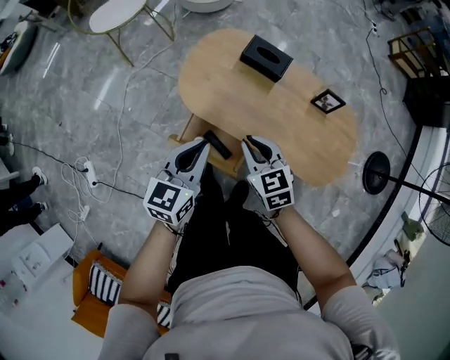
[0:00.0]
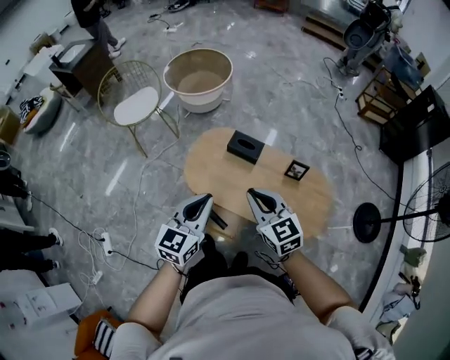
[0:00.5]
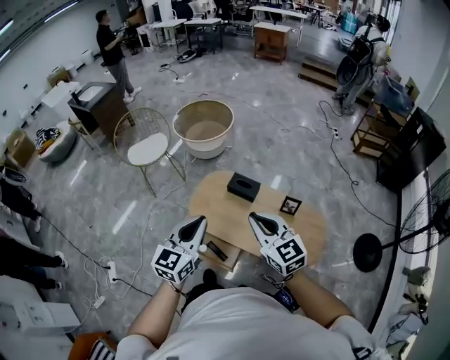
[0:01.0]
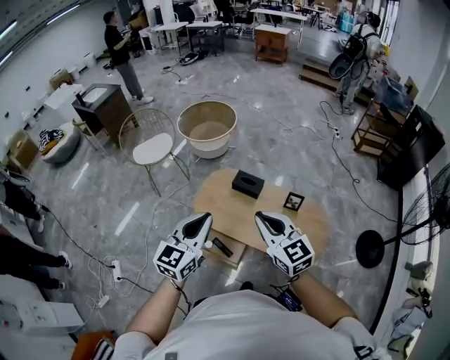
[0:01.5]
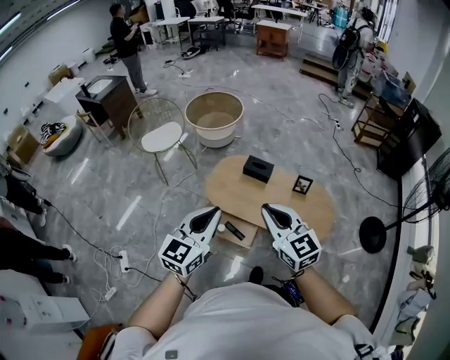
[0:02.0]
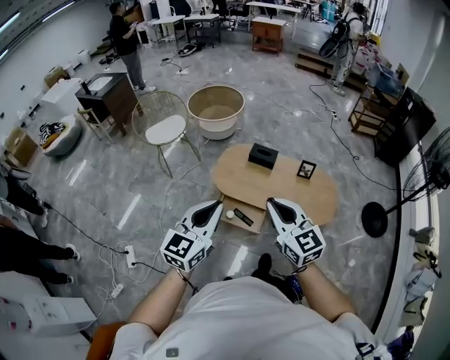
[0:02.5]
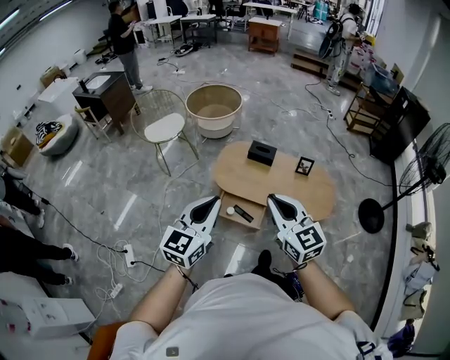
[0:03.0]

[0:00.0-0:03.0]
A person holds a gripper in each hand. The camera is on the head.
0:00.0 to 0:01.5: The grippers both shift upward by roughly 35 cm. The left gripper swivels approximately 20 degrees. Meanwhile the right gripper rotates approximately 30 degrees.
0:01.5 to 0:03.0: Both grippers move backward and to the left, roughly 25 cm.

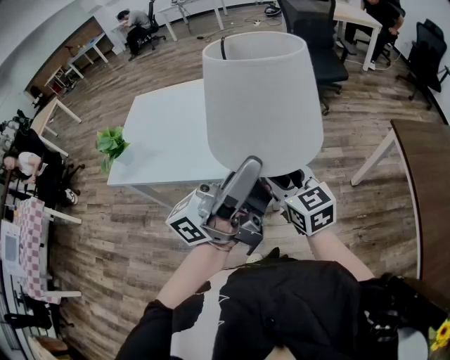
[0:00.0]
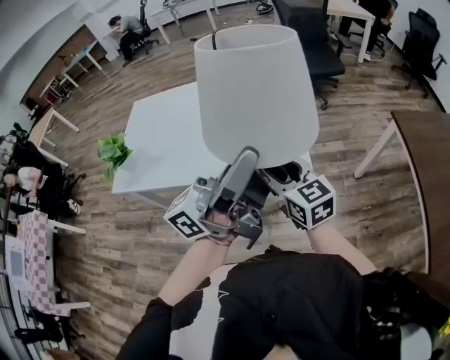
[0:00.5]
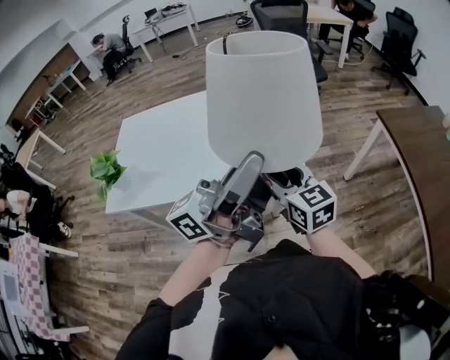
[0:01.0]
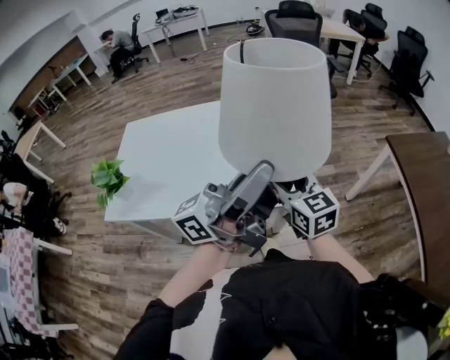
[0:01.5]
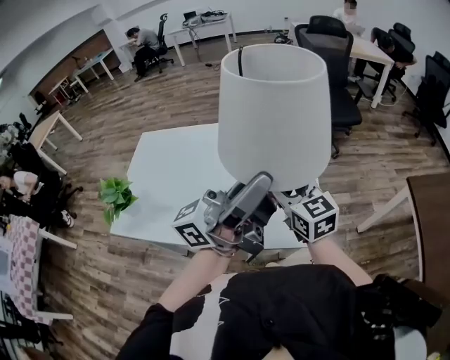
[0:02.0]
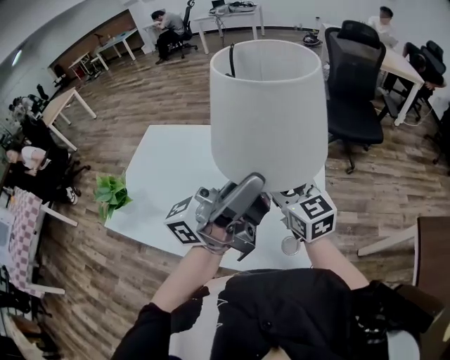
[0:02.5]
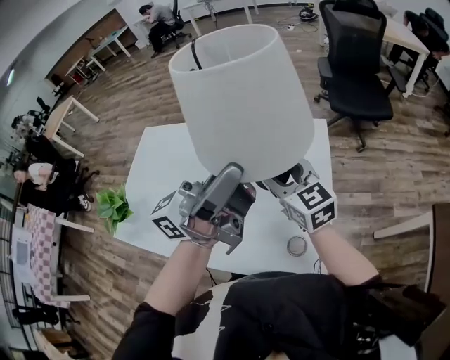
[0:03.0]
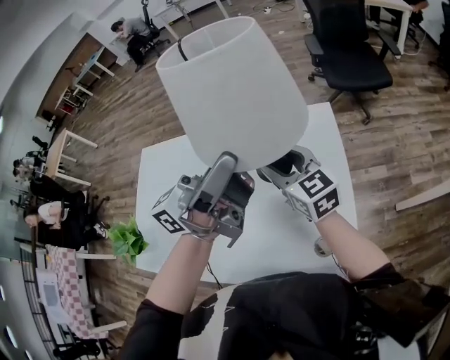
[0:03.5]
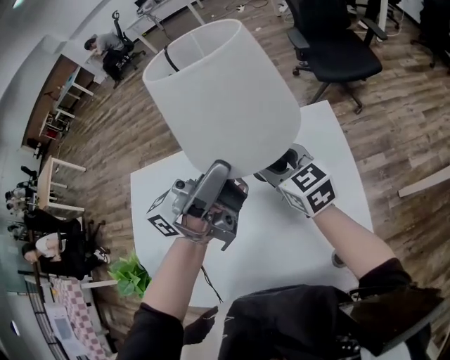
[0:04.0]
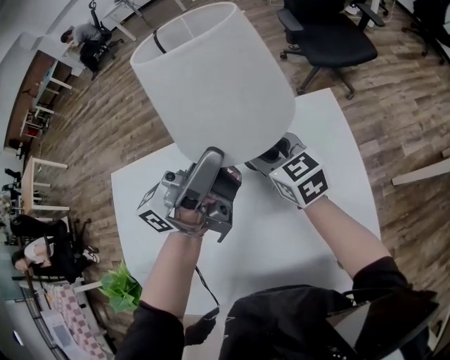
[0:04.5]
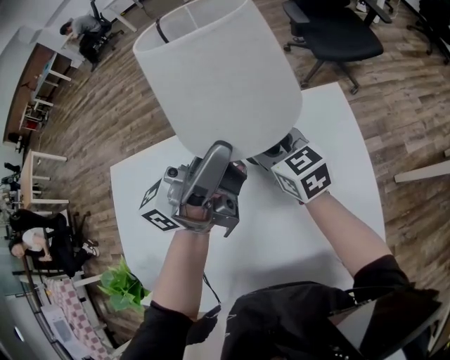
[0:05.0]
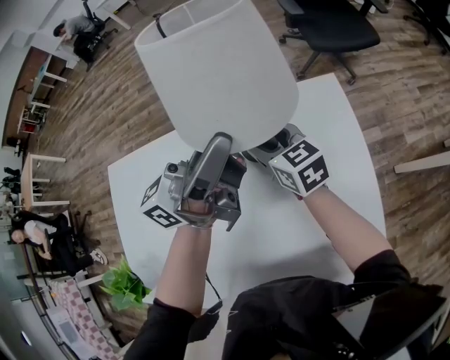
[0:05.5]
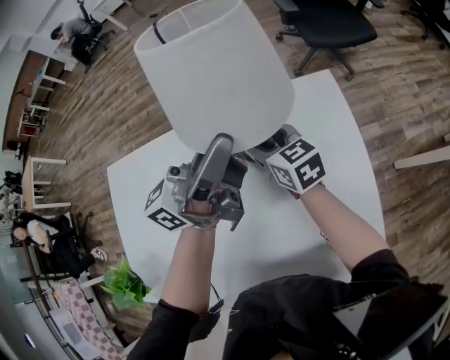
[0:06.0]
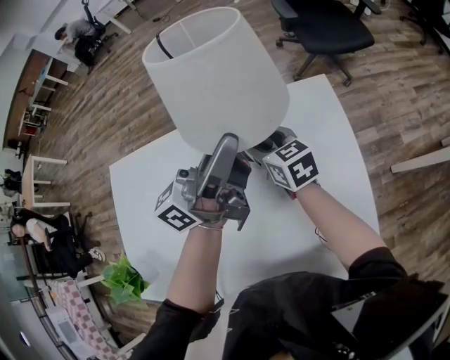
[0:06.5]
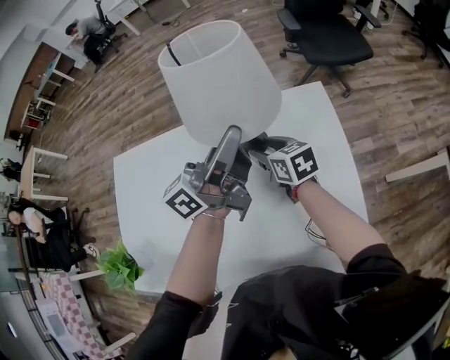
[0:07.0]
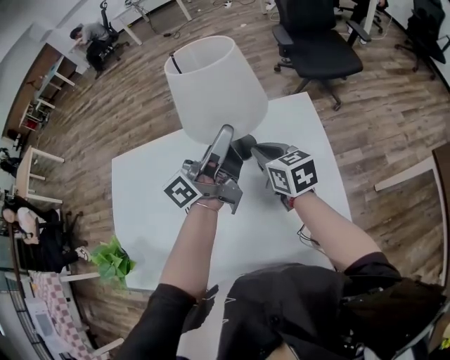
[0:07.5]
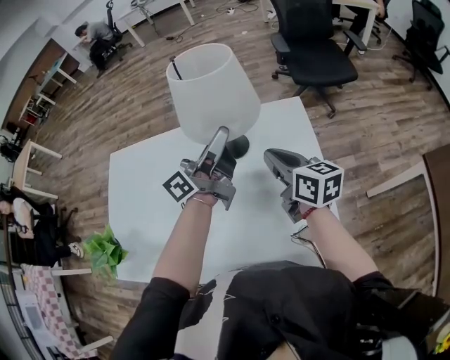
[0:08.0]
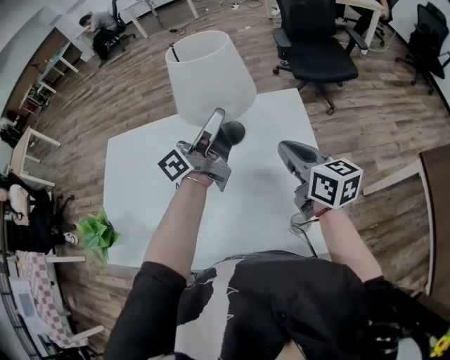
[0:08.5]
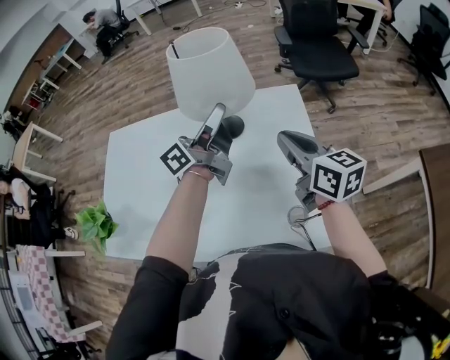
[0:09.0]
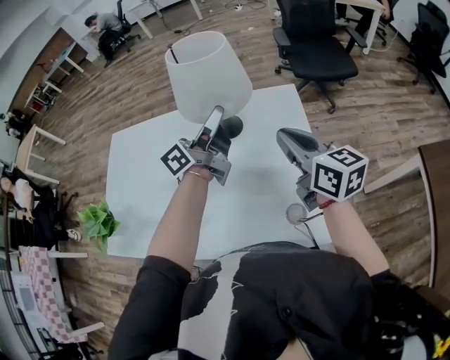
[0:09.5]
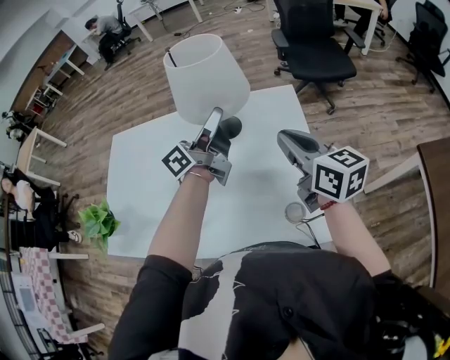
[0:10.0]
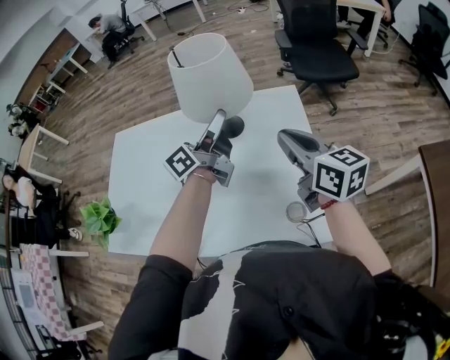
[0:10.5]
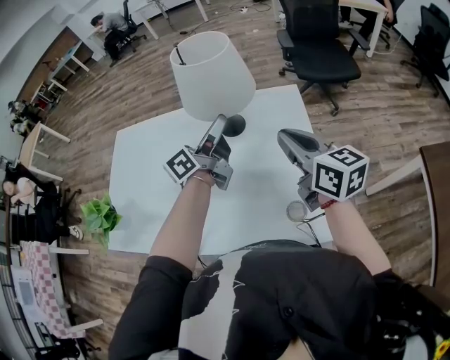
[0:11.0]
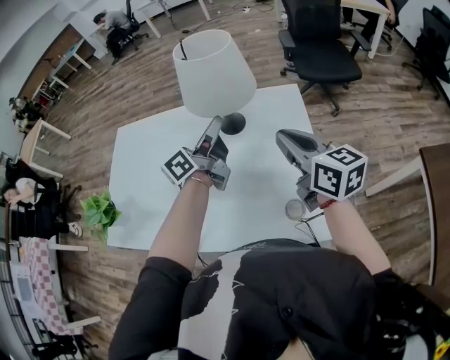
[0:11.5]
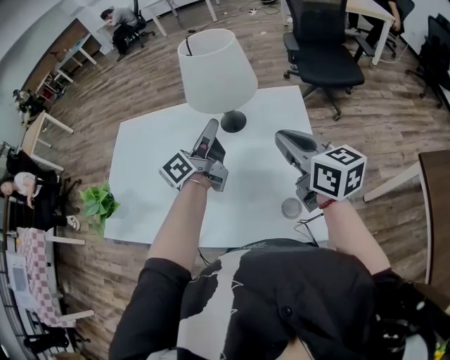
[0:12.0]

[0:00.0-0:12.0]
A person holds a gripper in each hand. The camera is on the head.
0:00.0 to 0:02.0: The grippers both shift forward and to the left by roughly 20 cm.
0:02.0 to 0:04.0: Both grippers travel together forward and to the left, approximately 30 cm.
0:04.0 to 0:06.0: The right gripper is displaced downward by roughly 10 cm. The left gripper moves downward and forward, about 10 cm.
0:06.0 to 0:08.0: The left gripper ends up about 5 cm from where it was, while the right gripper moves to the right, backward and upward, about 20 cm, and closes up.
0:08.0 to 0:10.0: The right gripper is displaced upward, backward and to the right by some 10 cm.
0:10.0 to 0:12.0: The left gripper changes place by about 5 cm.

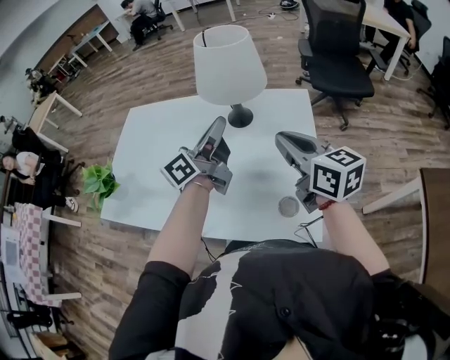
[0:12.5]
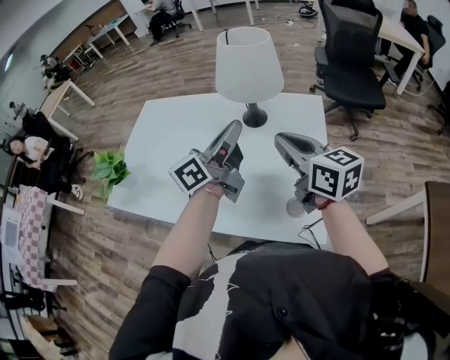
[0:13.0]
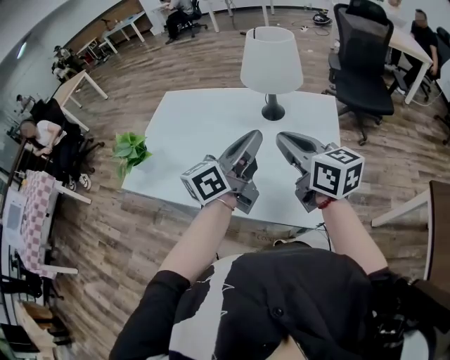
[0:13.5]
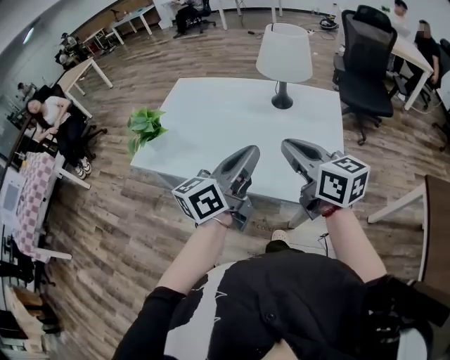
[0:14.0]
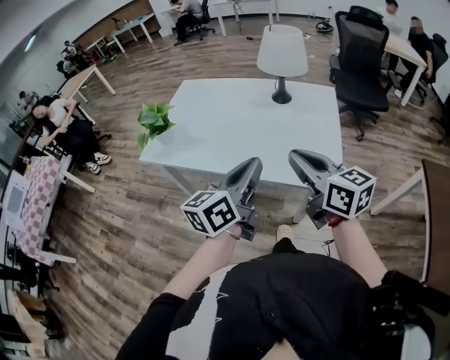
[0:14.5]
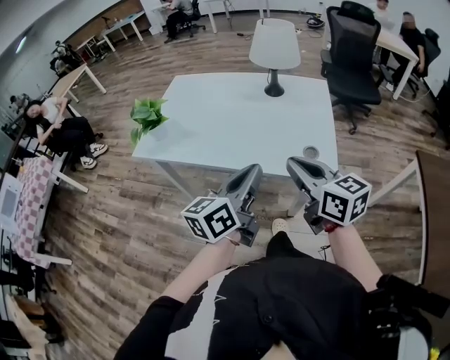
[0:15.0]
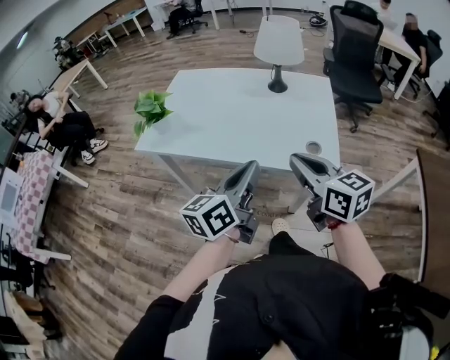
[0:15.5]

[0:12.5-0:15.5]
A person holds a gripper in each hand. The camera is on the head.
0:12.5 to 0:14.0: The left gripper moves backward, approximately 25 cm; the right gripper shifts some 20 cm backward and to the left.
0:14.0 to 0:15.5: Both grippers travel together backward, some 15 cm.

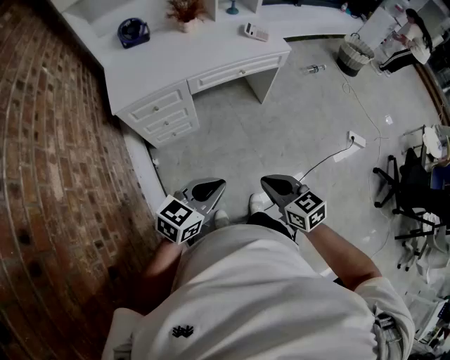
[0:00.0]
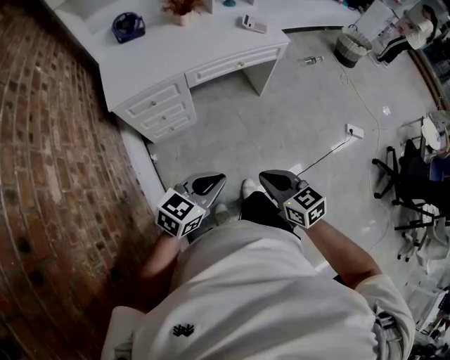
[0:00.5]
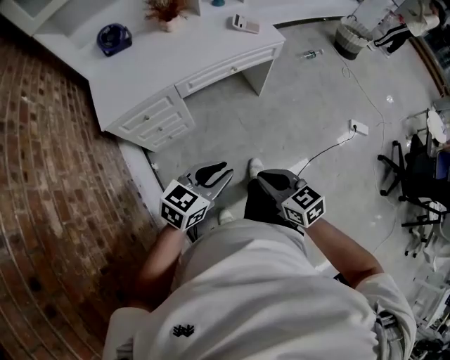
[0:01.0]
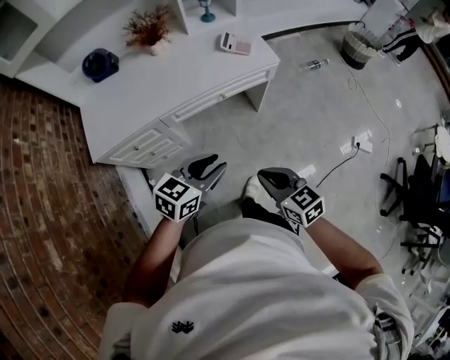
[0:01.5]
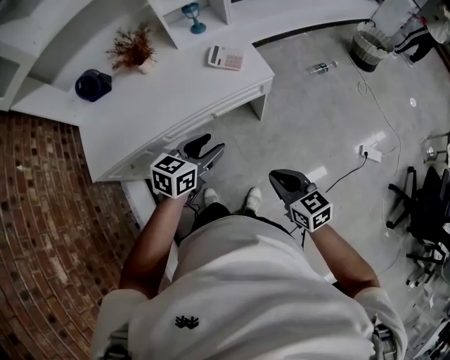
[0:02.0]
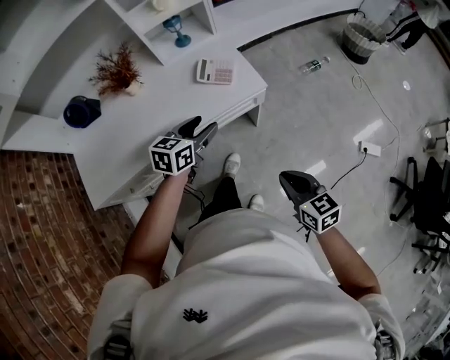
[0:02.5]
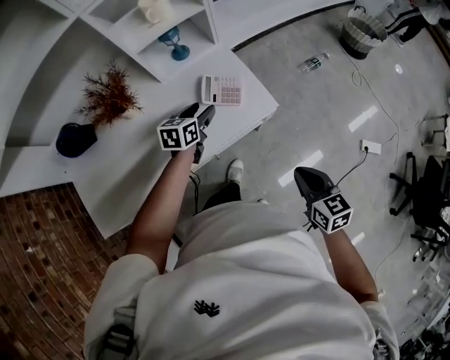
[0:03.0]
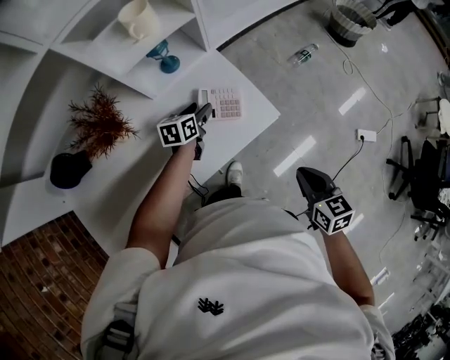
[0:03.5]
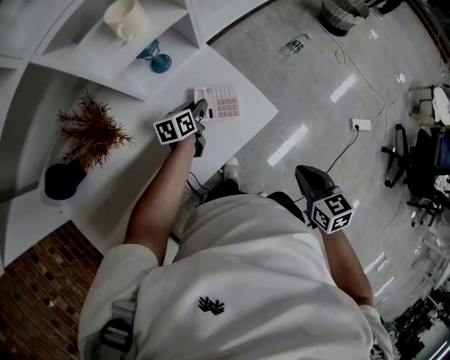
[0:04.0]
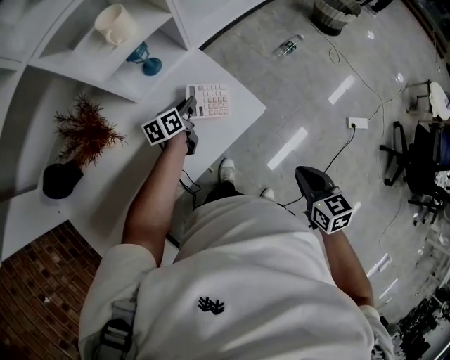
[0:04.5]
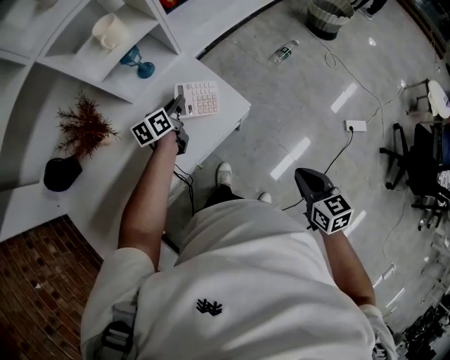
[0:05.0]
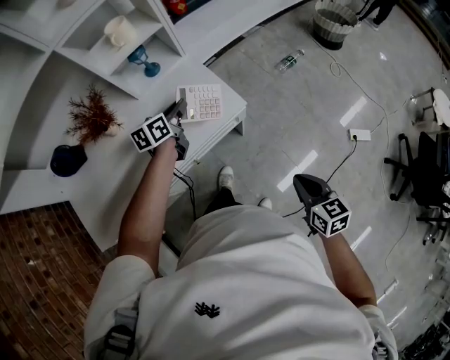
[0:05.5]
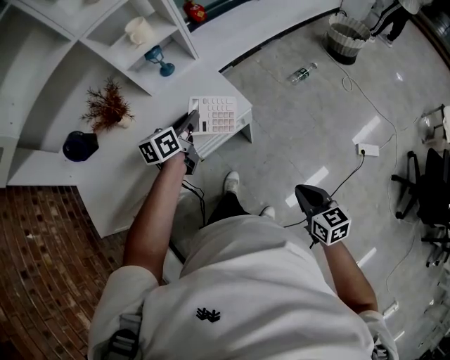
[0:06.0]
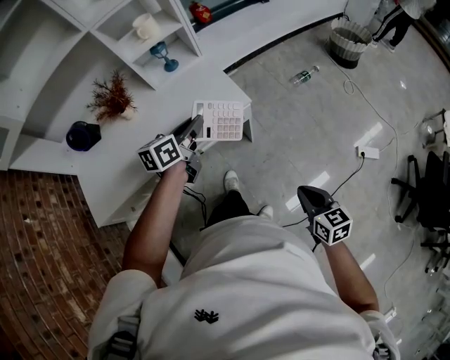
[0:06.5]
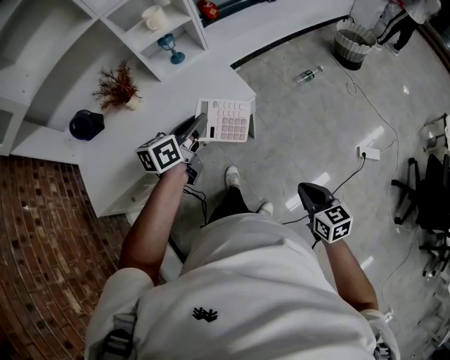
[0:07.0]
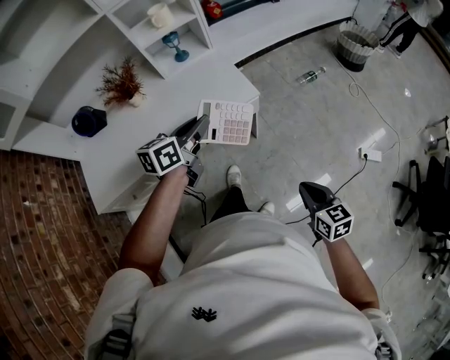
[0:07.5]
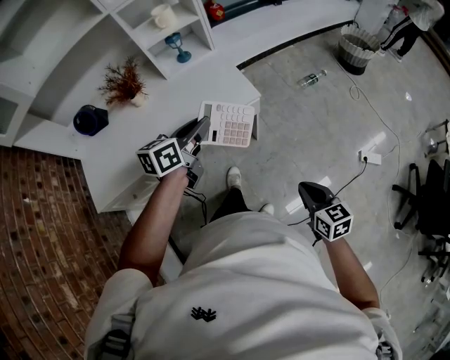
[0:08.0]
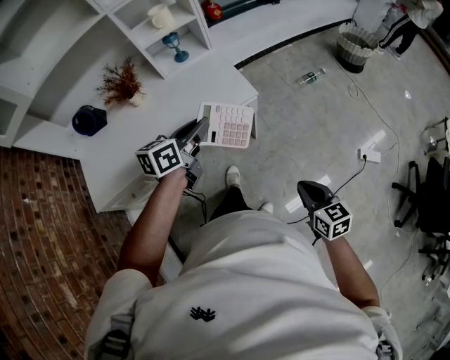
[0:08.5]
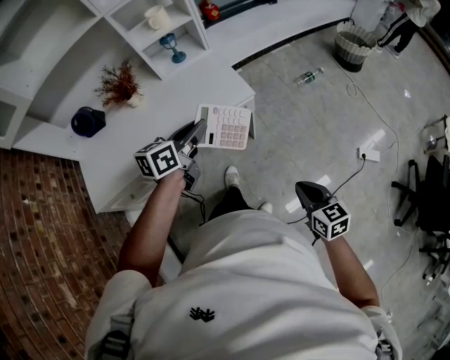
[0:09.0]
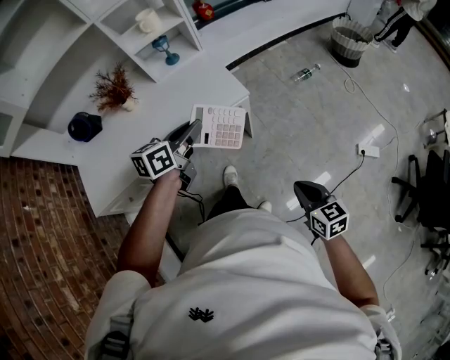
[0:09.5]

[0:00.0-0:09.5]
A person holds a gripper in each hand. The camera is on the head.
0:00.0 to 0:02.0: The two grippers travel together, forward and to the right, some 40 cm. The left gripper opens its fingers.
0:02.0 to 0:04.0: The left gripper goes some 50 cm forward and downward, turns by approximately 20 degrees, and closes up; the right gripper moves forward, approximately 25 cm, and swivels roughly 30 degrees.
0:04.0 to 0:05.5: The right gripper shifts about 15 cm to the right and backward, while the left gripper is displaced upward and backward by about 15 cm.
0:05.5 to 0:07.5: The left gripper travels backward and upward by roughly 25 cm. Meanwhile the right gripper travels backward by roughly 10 cm.
0:07.5 to 0:09.5: There are only small adjustments of the grippers.
